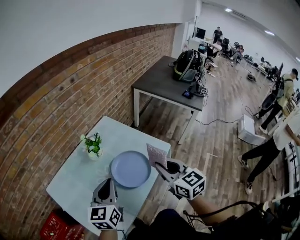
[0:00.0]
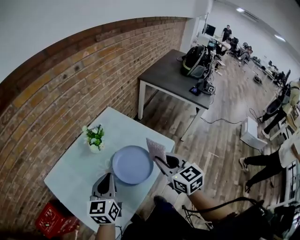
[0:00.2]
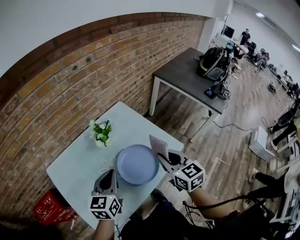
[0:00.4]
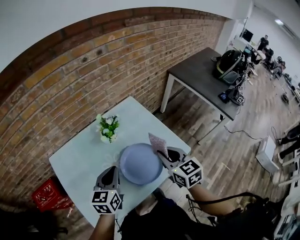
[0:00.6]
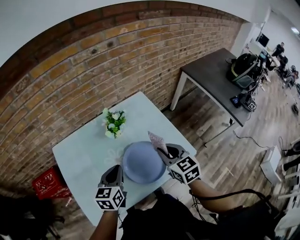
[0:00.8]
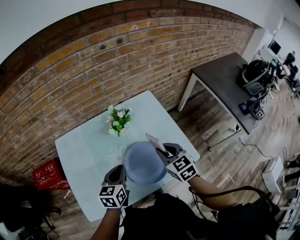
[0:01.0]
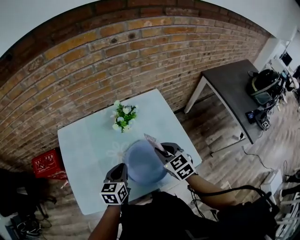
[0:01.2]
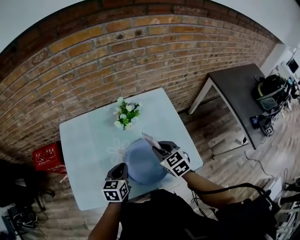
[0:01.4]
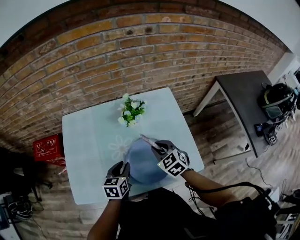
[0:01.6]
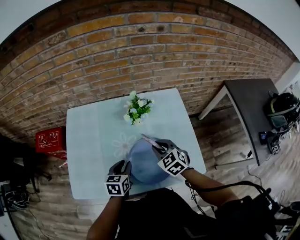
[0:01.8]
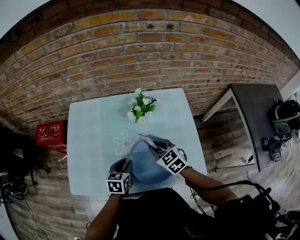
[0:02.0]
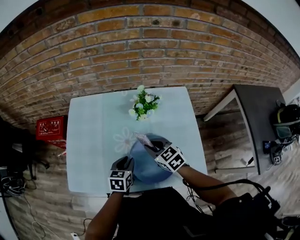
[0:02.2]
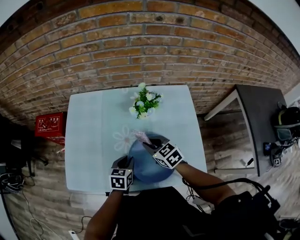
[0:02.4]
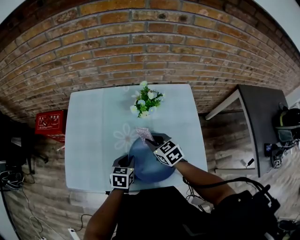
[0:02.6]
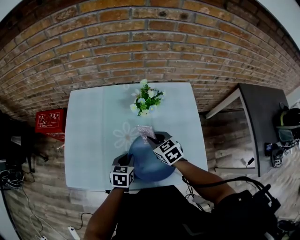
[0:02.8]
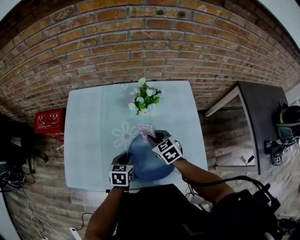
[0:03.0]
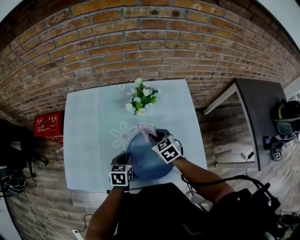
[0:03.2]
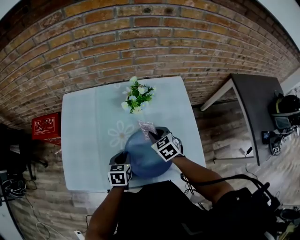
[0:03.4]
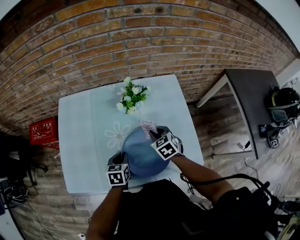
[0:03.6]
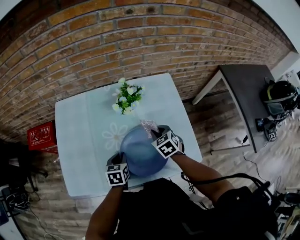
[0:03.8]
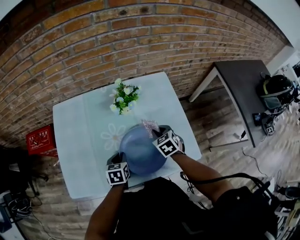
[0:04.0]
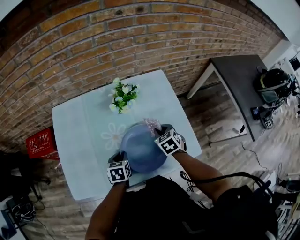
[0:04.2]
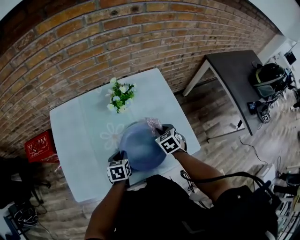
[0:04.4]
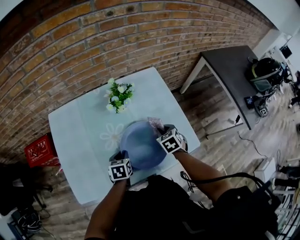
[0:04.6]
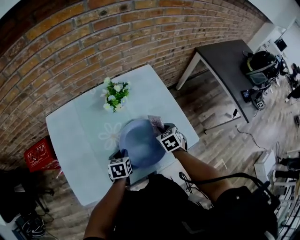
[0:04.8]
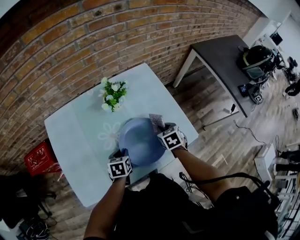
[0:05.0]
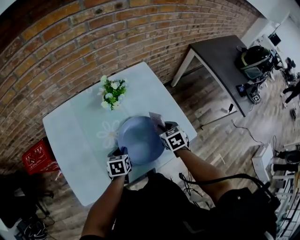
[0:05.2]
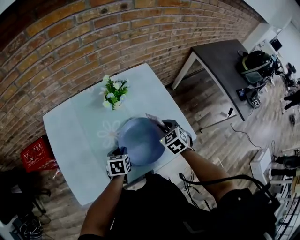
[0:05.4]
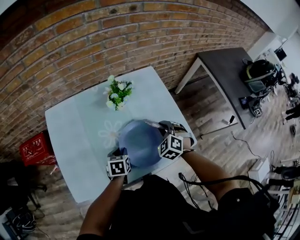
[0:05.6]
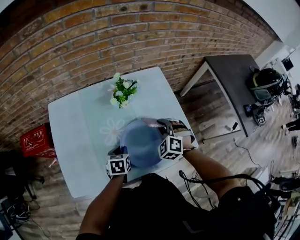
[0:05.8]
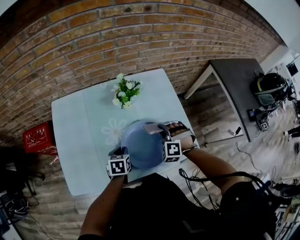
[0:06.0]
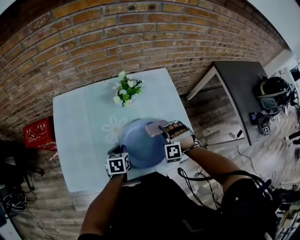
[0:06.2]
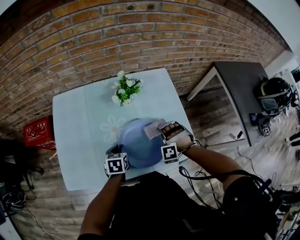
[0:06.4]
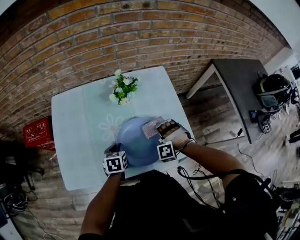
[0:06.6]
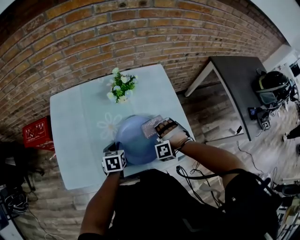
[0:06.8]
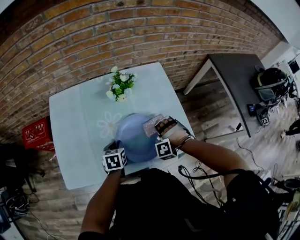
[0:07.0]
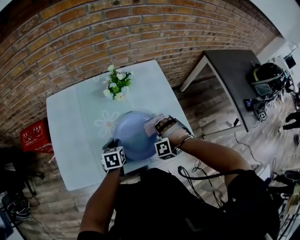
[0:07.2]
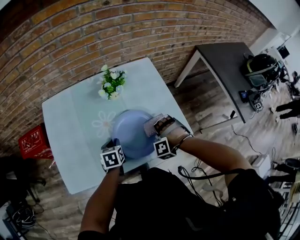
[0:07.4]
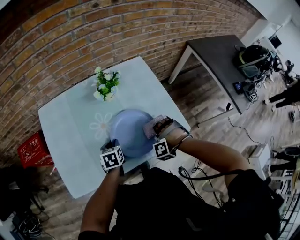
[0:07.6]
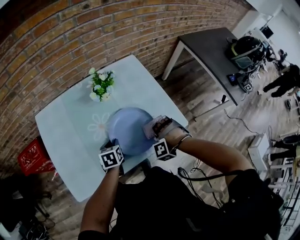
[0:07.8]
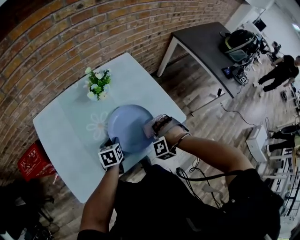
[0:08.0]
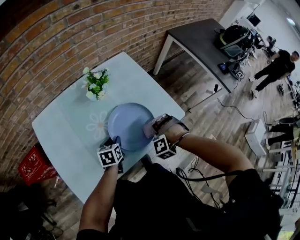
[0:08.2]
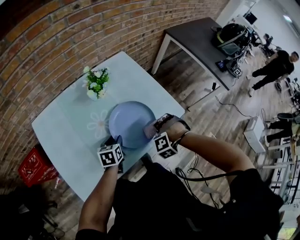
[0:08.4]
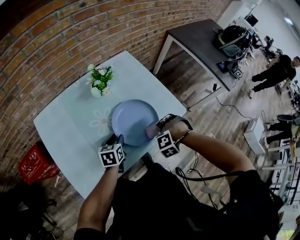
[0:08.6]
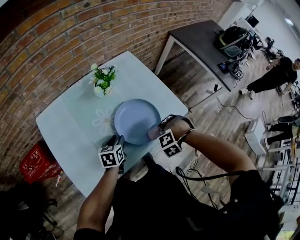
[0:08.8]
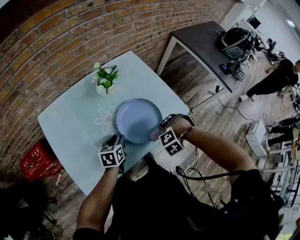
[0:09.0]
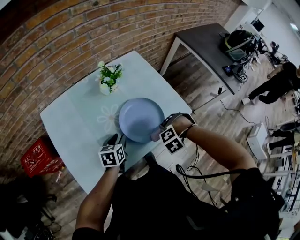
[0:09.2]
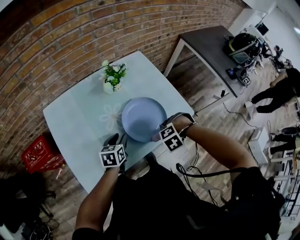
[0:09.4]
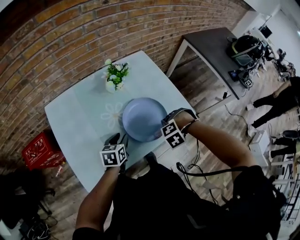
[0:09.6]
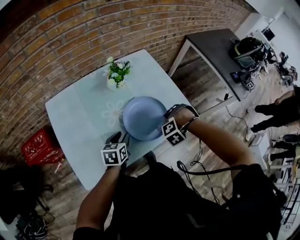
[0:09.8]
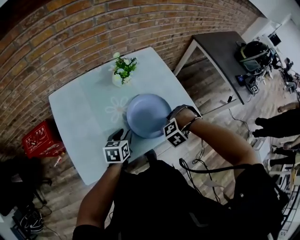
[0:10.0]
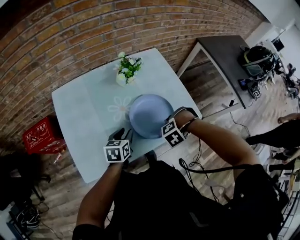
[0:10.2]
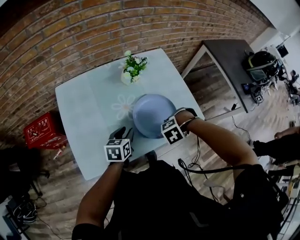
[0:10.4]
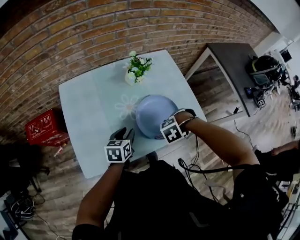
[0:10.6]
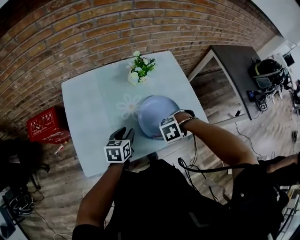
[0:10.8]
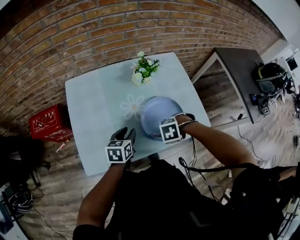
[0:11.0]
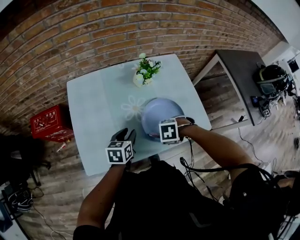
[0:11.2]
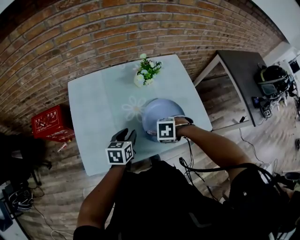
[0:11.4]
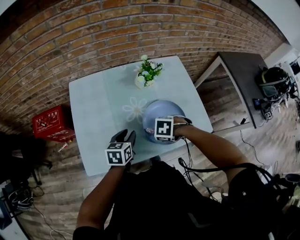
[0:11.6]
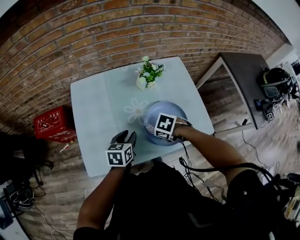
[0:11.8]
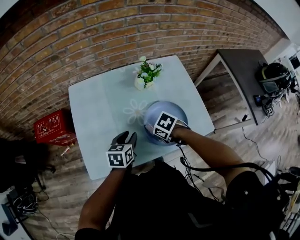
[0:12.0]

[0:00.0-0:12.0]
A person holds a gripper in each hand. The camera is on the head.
0:00.0 to 0:01.6: The two grippers go about 20 cm downward. The left gripper turns by about 40 degrees, and opens. Meanwhile the right gripper swivels some 60 degrees.
0:01.6 to 0:03.0: The left gripper moves downward, approximately 5 cm. The right gripper goes about 10 cm downward and forward.
0:03.0 to 0:04.4: The right gripper travels to the right by roughly 10 cm, and swivels some 30 degrees.
0:04.4 to 0:06.0: The right gripper rotates around the line of its fingers by roughly 70 degrees, counterclockwise from behind.
0:06.0 to 0:07.6: The right gripper heads backward and to the right, covering approximately 10 cm, and swivels roughly 40 degrees.
0:07.6 to 0:09.0: The left gripper swivels some 20 degrees, and opens its fingers. Meanwhile the right gripper changes place by about 10 cm, and turns by approximately 30 degrees.
0:09.0 to 0:10.4: The grippers stay close to where they were, moving slightly.
0:10.4 to 0:12.0: The right gripper shifts by about 15 cm, and rolls clockwise, seen from behind, by about 50 degrees.

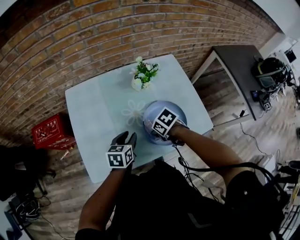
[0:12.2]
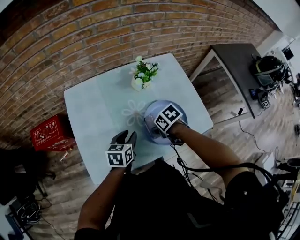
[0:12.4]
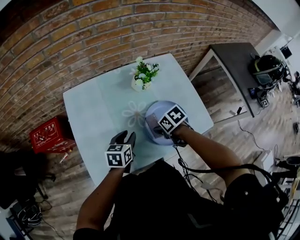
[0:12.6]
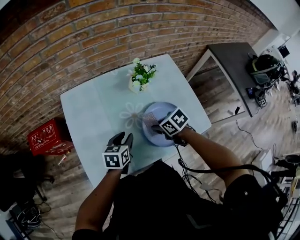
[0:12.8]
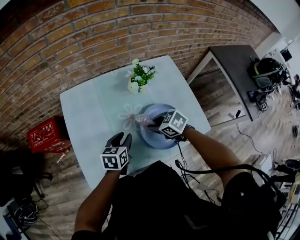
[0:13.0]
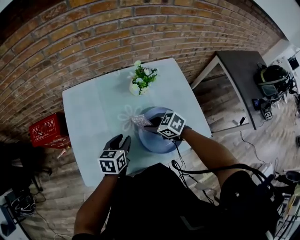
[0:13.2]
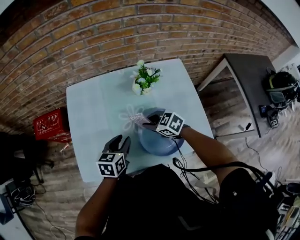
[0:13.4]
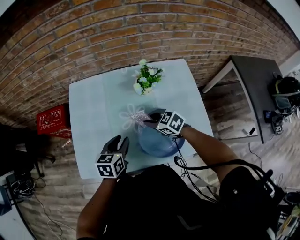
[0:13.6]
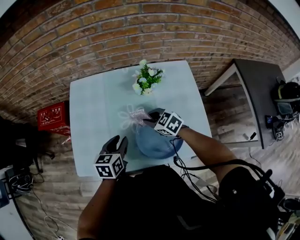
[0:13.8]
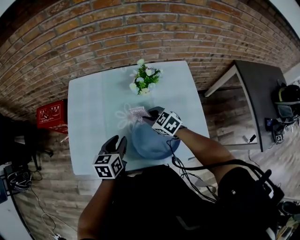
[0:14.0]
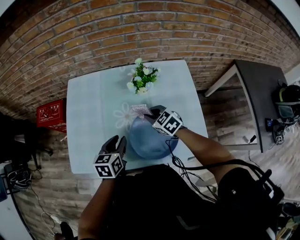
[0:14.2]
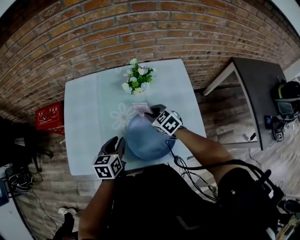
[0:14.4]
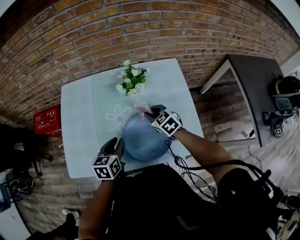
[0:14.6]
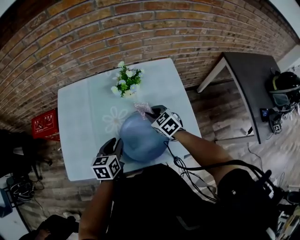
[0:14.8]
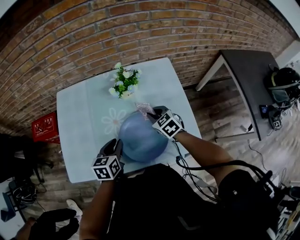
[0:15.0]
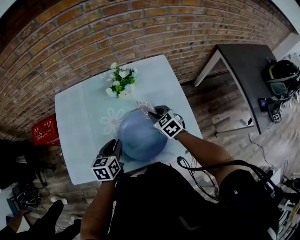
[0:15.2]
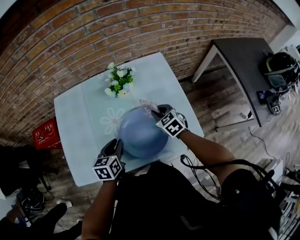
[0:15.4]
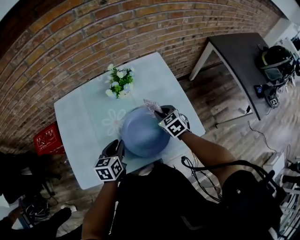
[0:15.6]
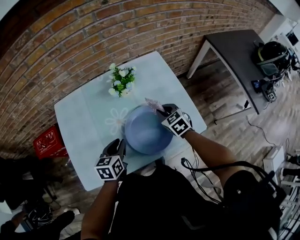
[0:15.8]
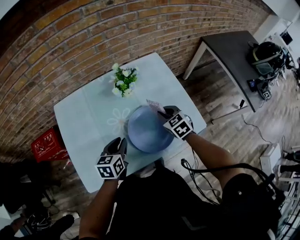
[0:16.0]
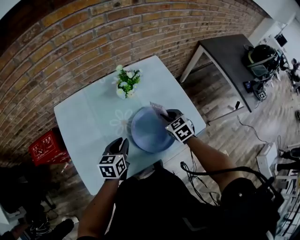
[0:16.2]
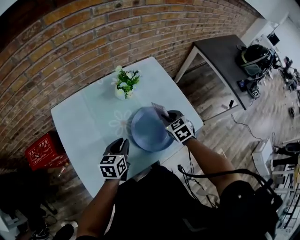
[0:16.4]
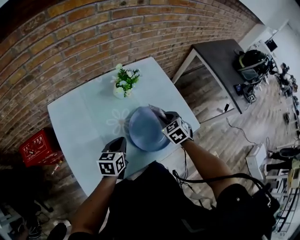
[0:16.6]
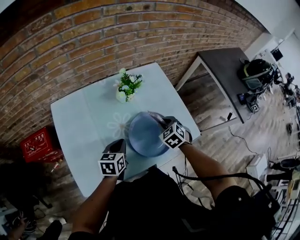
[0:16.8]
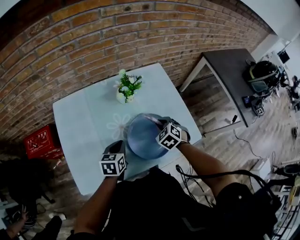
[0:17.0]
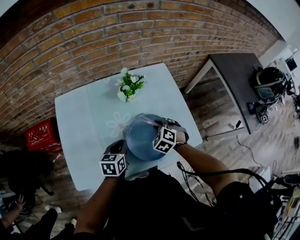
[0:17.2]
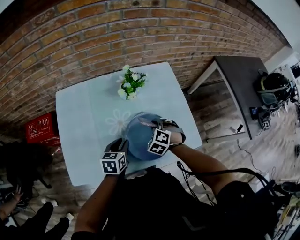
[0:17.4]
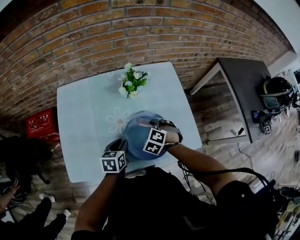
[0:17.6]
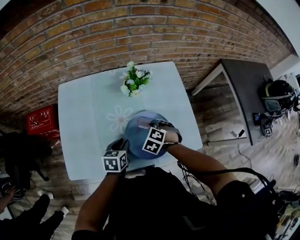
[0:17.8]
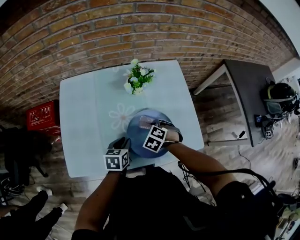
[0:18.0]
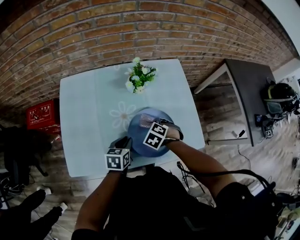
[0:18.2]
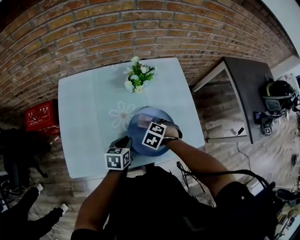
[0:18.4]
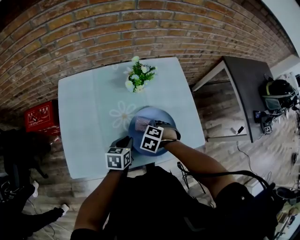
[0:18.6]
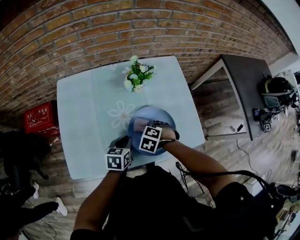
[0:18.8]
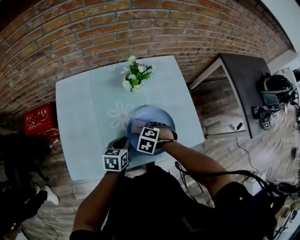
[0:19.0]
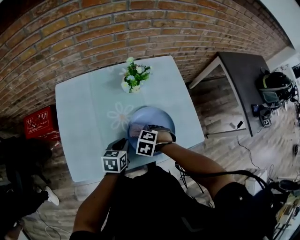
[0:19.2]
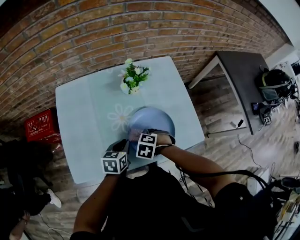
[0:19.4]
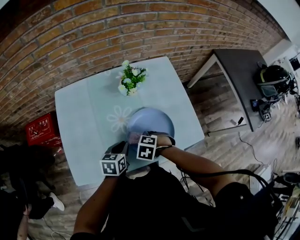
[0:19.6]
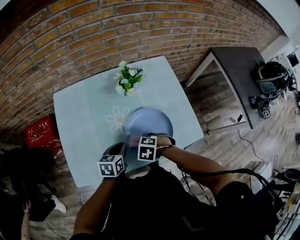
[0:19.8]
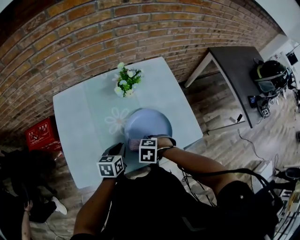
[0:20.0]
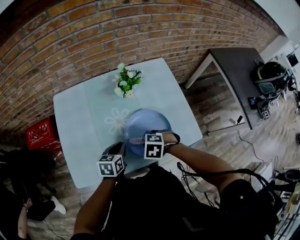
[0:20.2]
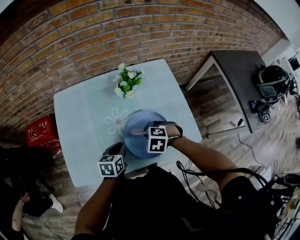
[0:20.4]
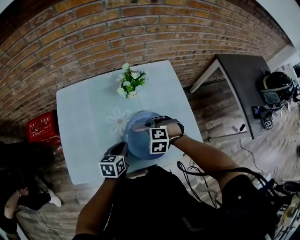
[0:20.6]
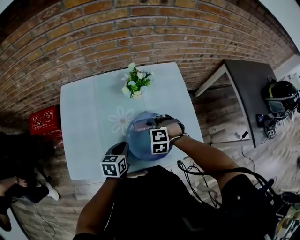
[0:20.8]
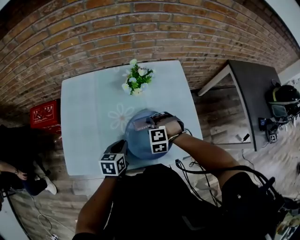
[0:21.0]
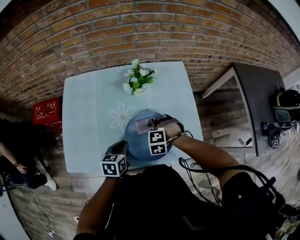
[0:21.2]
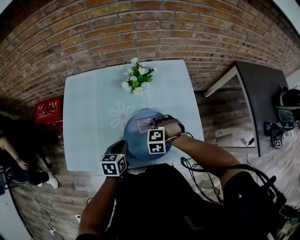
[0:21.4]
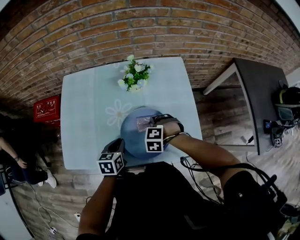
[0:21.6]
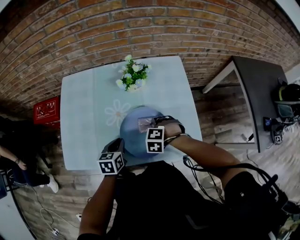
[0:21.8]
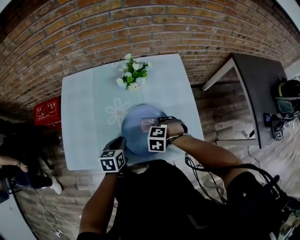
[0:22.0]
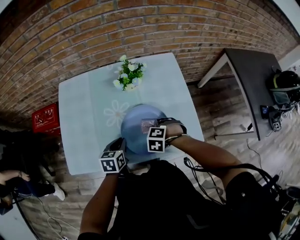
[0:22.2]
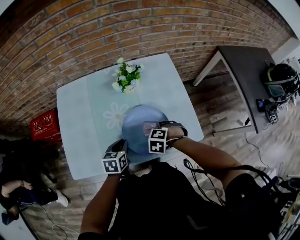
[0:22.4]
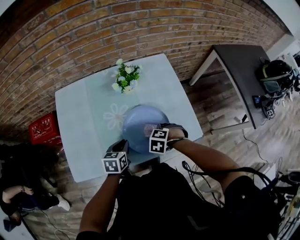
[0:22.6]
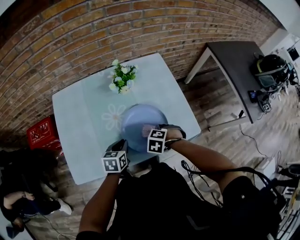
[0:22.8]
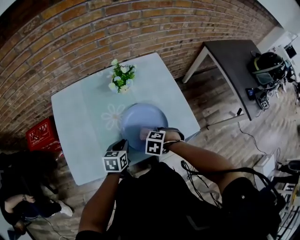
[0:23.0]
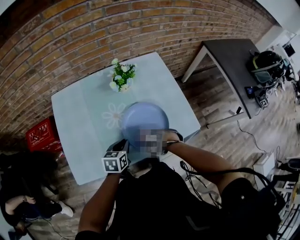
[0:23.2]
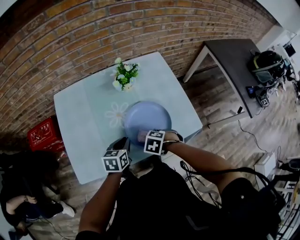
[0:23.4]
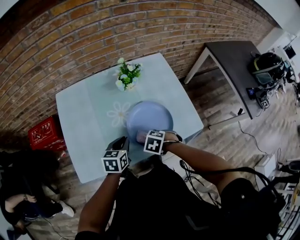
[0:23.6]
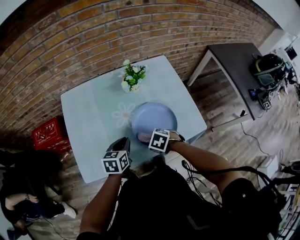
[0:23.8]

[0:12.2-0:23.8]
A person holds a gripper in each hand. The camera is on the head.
0:12.2 to 0:13.6: The right gripper changes place by about 10 cm, and changes its angle by approximately 40 degrees.
0:13.6 to 0:15.0: The left gripper moves to the right, some 5 cm. Meanwhile the right gripper is displaced to the right by about 15 cm, and rotates approximately 20 degrees.
0:15.0 to 0:16.6: The right gripper ends up about 10 cm from where it was, and changes its angle by approximately 30 degrees; the left gripper changes its angle by approximately 20 degrees.
0:16.6 to 0:18.0: The grippers both shift downward by about 5 cm. The left gripper opens its fingers. Meanwhile the right gripper turns by some 40 degrees.
0:18.0 to 0:19.4: The right gripper moves about 10 cm.
0:19.4 to 0:21.0: The right gripper ends up approximately 10 cm from where it was, and turns by about 40 degrees.
0:21.0 to 0:22.4: The right gripper ends up roughly 10 cm from where it was, and changes its angle by some 30 degrees.
0:22.4 to 0:23.8: The left gripper shifts by some 5 cm. Meanwhile the right gripper ends up some 10 cm from where it was, and turns by approximately 30 degrees.
